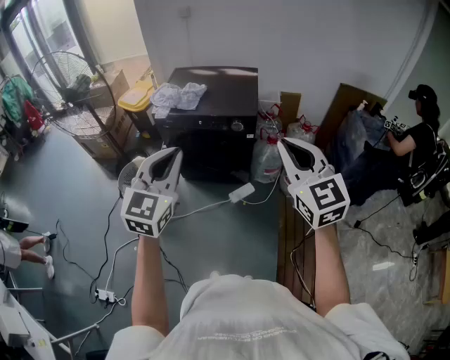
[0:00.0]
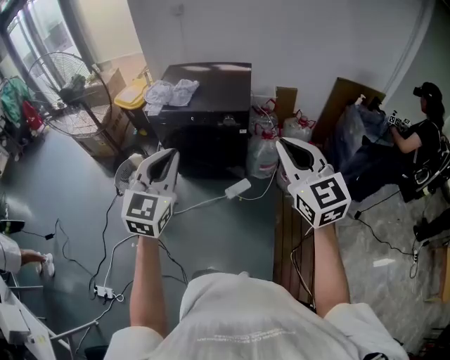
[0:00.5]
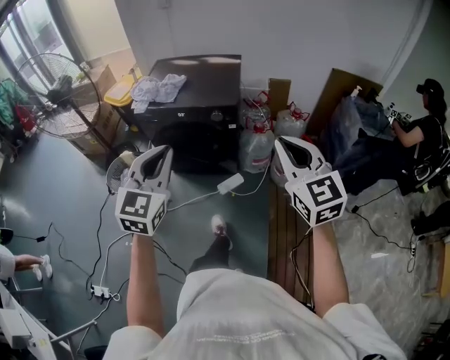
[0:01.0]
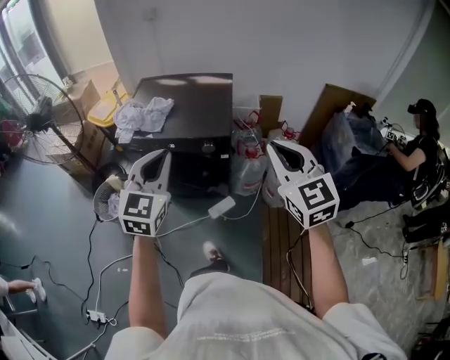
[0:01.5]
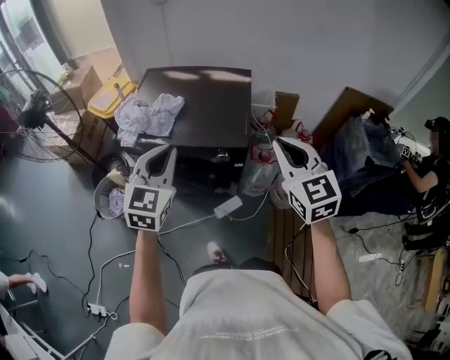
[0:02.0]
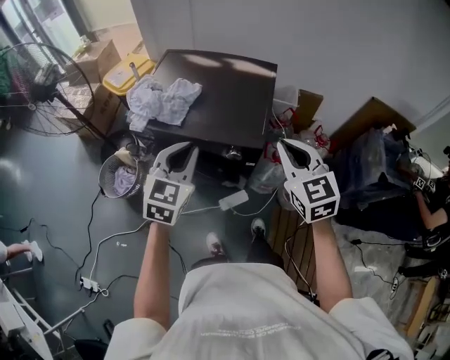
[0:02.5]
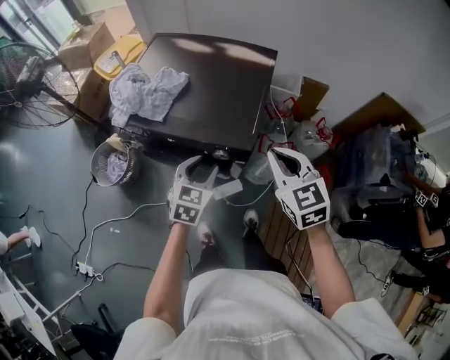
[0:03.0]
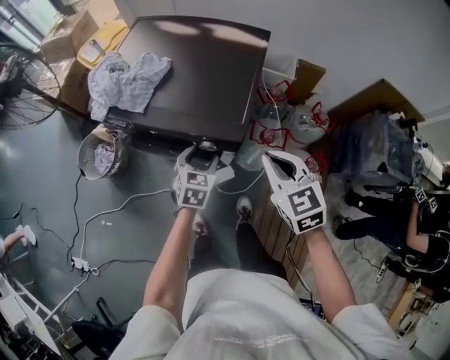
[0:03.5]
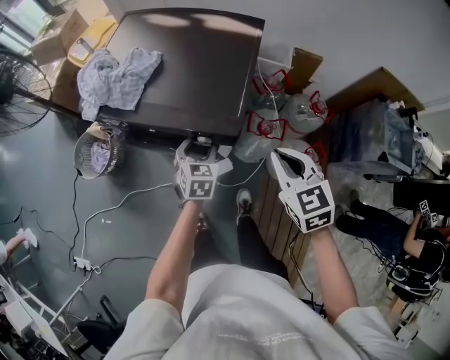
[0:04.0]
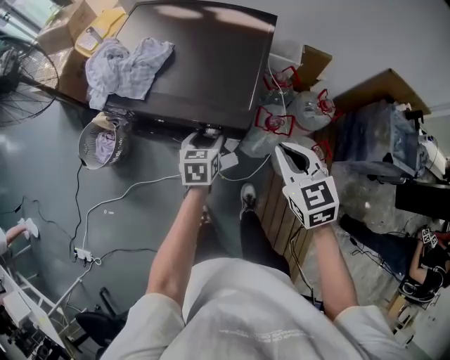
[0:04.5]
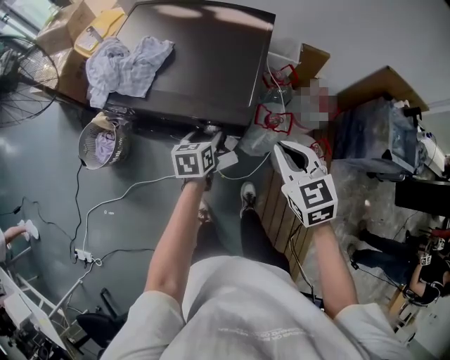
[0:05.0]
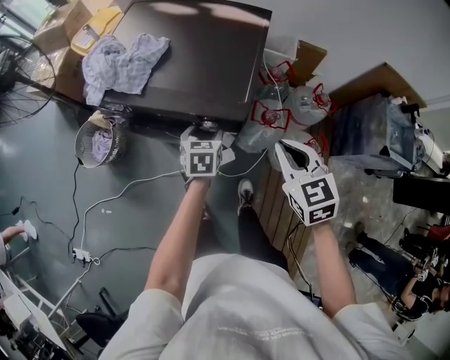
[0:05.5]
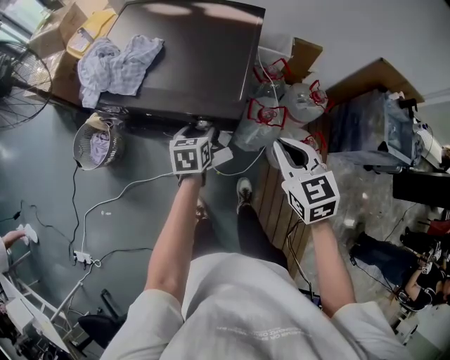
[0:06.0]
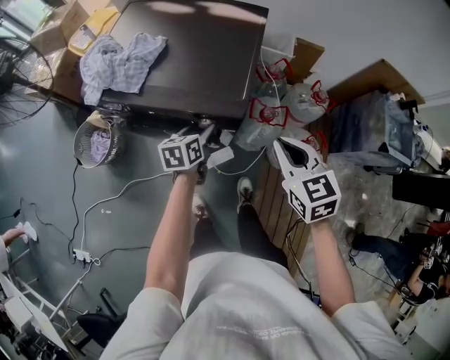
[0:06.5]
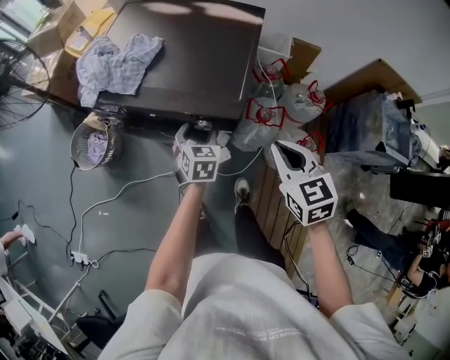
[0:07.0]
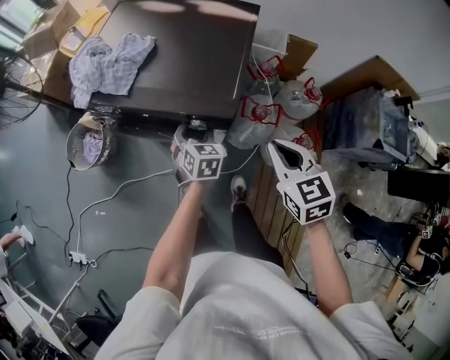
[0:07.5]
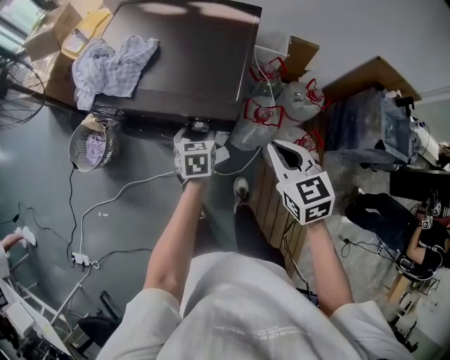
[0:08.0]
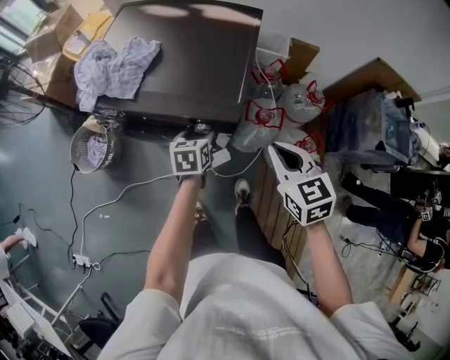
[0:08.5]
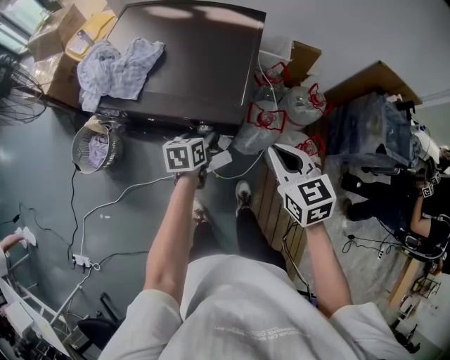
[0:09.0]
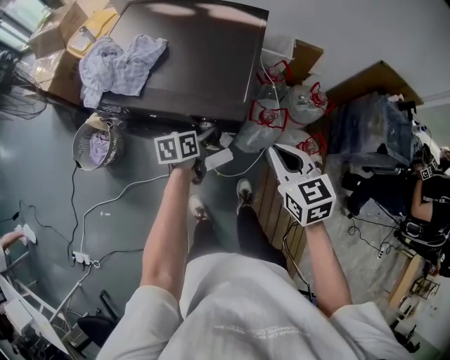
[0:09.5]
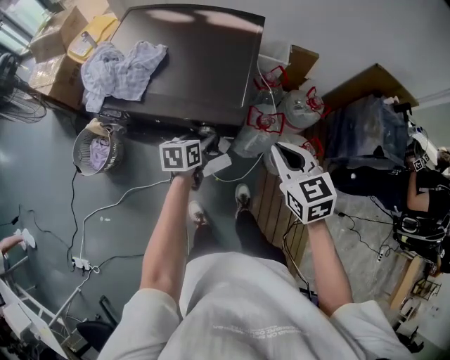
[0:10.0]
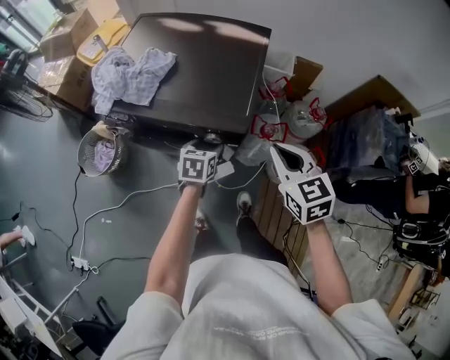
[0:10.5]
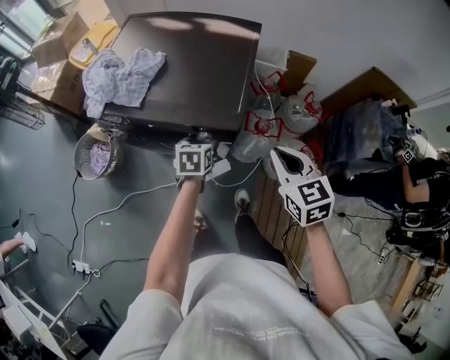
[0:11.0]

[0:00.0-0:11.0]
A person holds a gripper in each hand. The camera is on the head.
0:00.0 to 0:02.0: Both grippers travel together forward, roughly 30 cm.
0:02.0 to 0:03.5: The left gripper heads downward and to the right, covering approximately 35 cm, turns by approximately 30 degrees, and opens; the right gripper shifts approximately 20 cm downward and forward, and changes its angle by some 20 degrees.
0:07.5 to 0:09.0: The left gripper swivels roughly 40 degrees.
0:09.0 to 0:11.0: The grippers make only small movements.

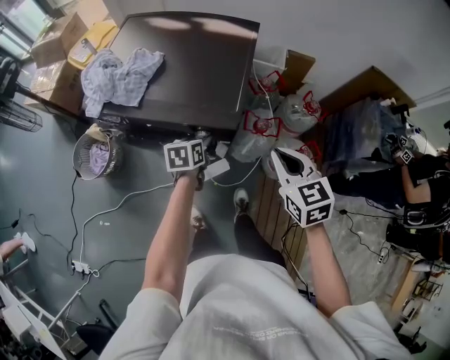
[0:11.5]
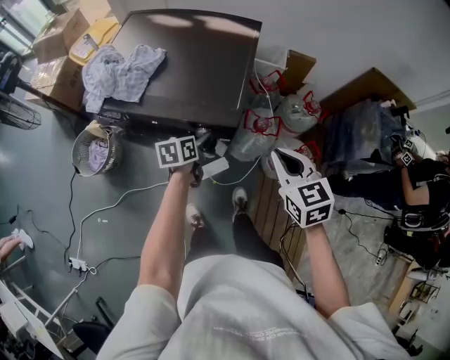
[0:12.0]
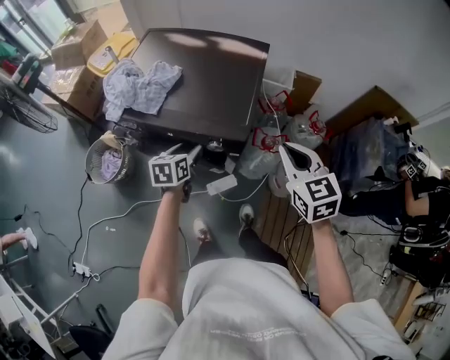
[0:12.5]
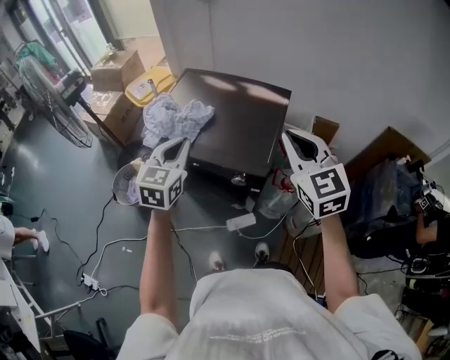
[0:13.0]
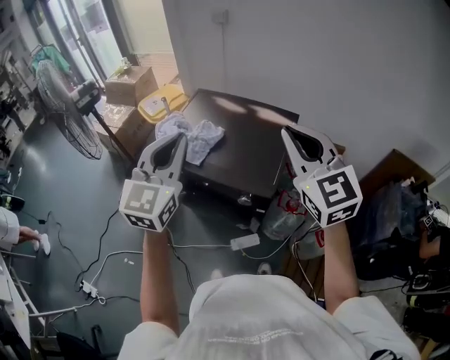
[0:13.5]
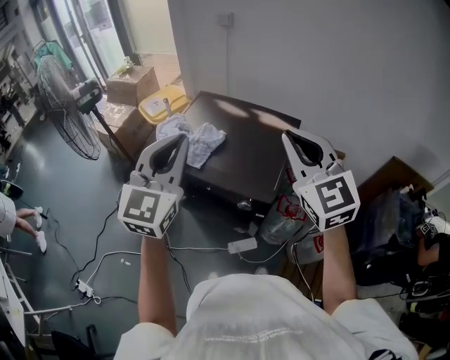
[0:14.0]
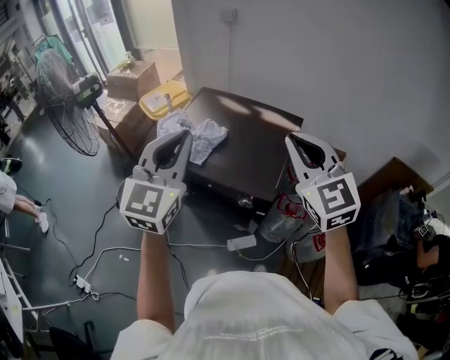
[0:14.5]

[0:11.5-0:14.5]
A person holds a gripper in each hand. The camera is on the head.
0:11.5 to 0:13.0: The right gripper shifts approximately 20 cm upward and to the left, and swivels roughly 30 degrees. Meanwhile the left gripper is displaced upward and to the left by approximately 35 cm, changes its angle by some 50 degrees, and closes.
0:13.0 to 0:14.5: The left gripper goes about 15 cm upward, and rotates about 20 degrees. The right gripper is displaced upward by approximately 5 cm.

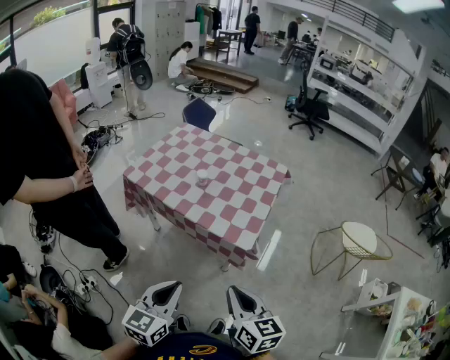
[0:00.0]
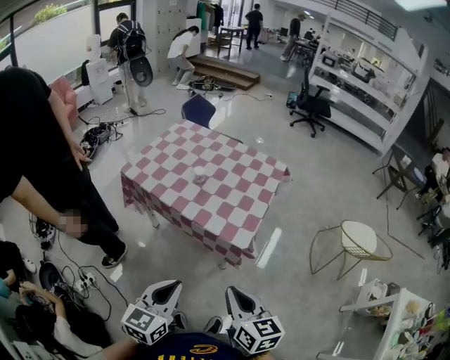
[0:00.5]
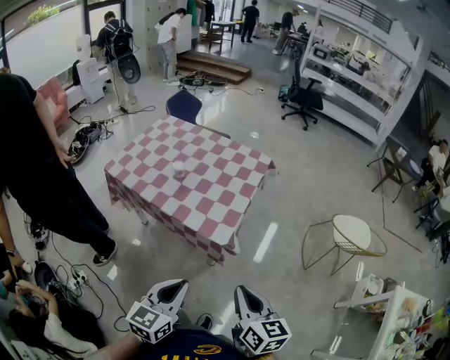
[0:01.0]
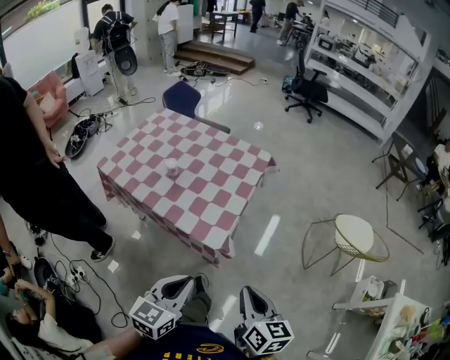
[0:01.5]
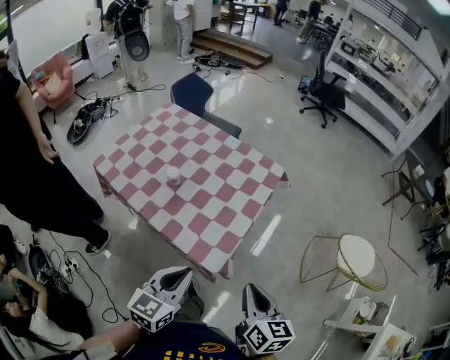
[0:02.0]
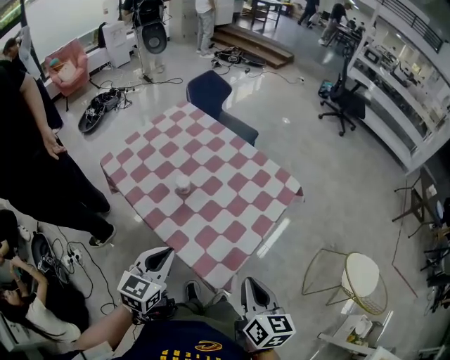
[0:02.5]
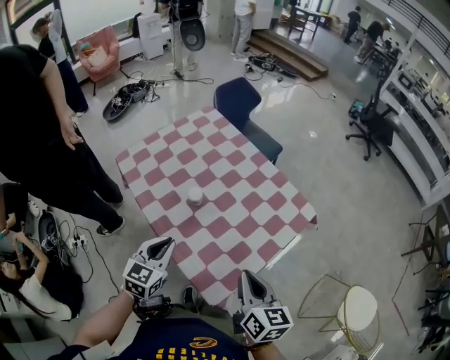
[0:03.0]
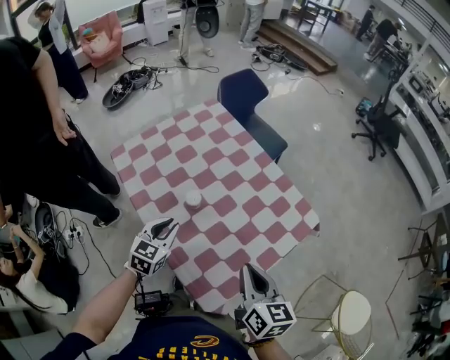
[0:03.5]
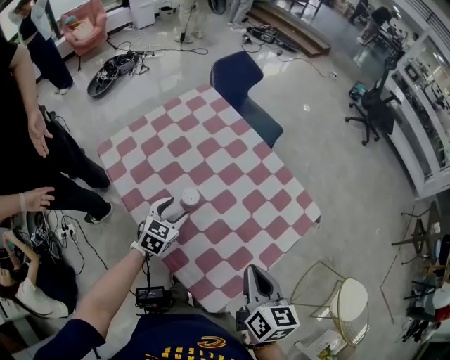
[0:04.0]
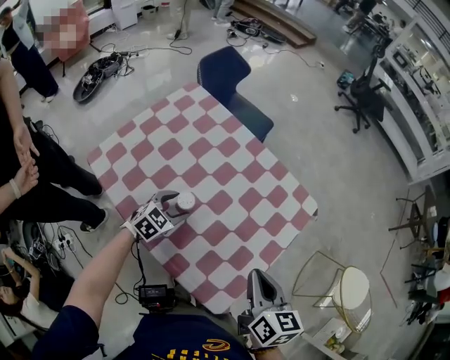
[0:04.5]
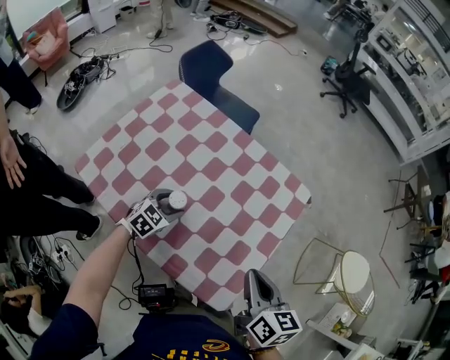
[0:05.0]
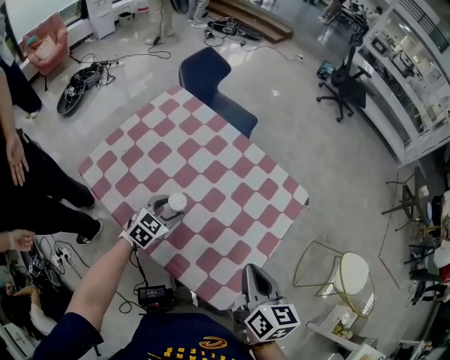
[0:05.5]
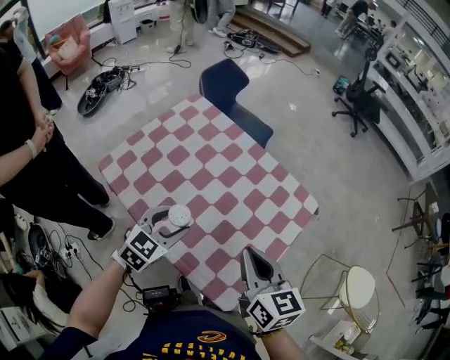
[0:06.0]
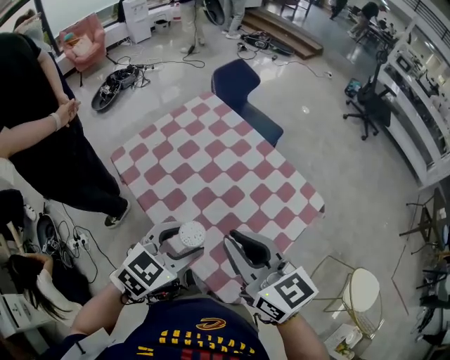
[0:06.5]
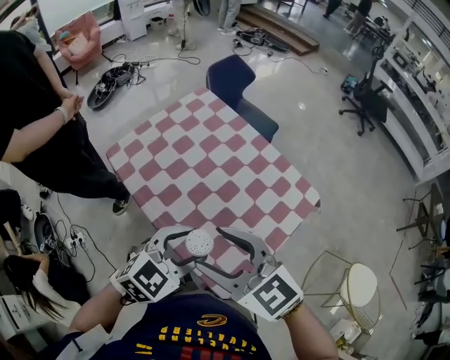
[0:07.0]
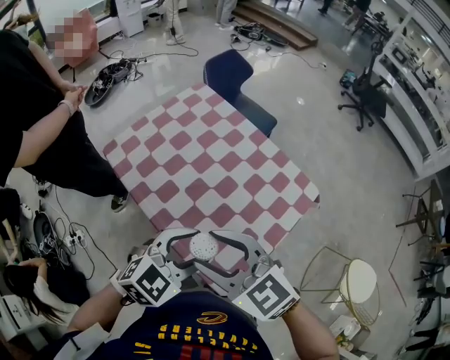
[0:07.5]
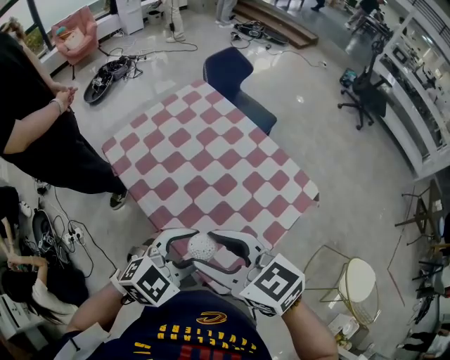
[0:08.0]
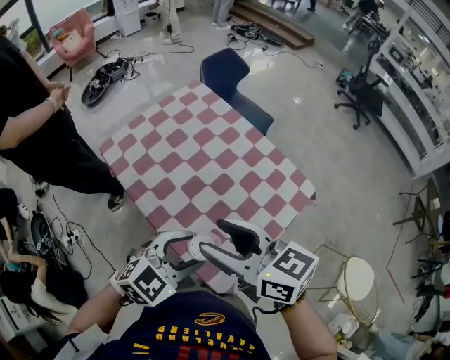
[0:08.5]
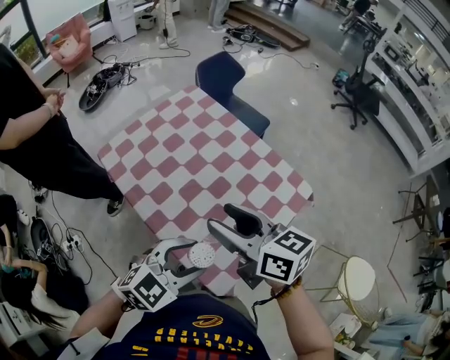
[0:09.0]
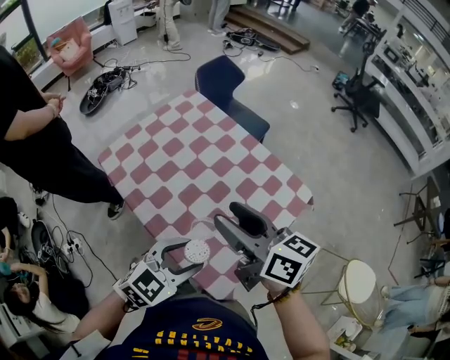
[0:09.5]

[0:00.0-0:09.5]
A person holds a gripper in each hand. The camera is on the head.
0:00.0 to 0:02.0: The grippers both shift forward and to the right by some 25 cm.
0:02.0 to 0:04.0: The right gripper heads forward, covering roughly 30 cm. Meanwhile the left gripper goes approximately 40 cm forward and downward, turns by approximately 30 degrees, and opens up.
0:04.0 to 0:05.5: The left gripper turns by about 20 degrees.
0:05.5 to 0:07.5: The left gripper heads upward and backward, covering approximately 30 cm; the right gripper moves to the left and upward, approximately 20 cm, swivels about 70 degrees, and opens.
0:07.5 to 0:09.5: The right gripper heads forward and to the right, covering approximately 10 cm, and rolls clockwise, seen from behind, by roughly 40 degrees.

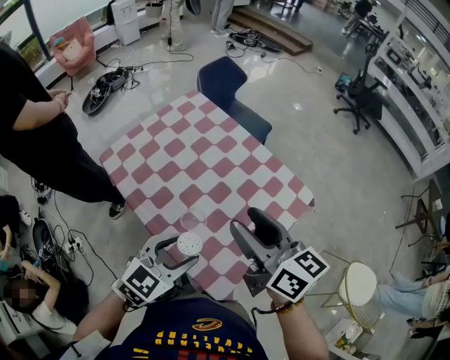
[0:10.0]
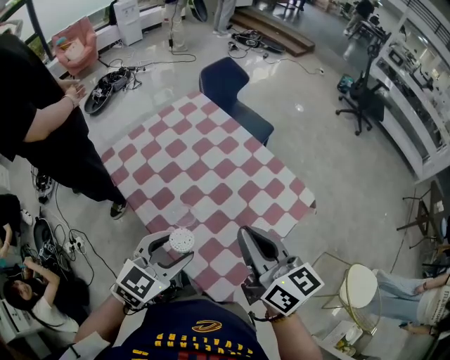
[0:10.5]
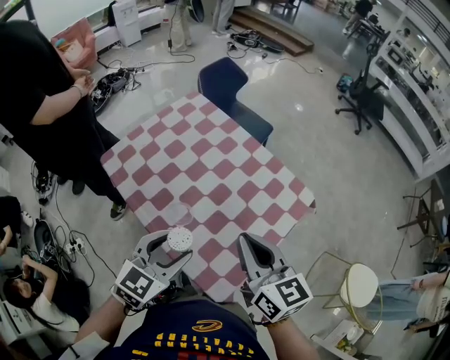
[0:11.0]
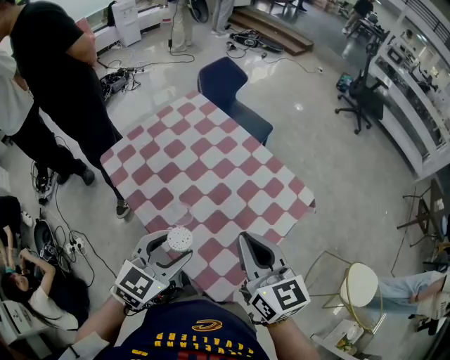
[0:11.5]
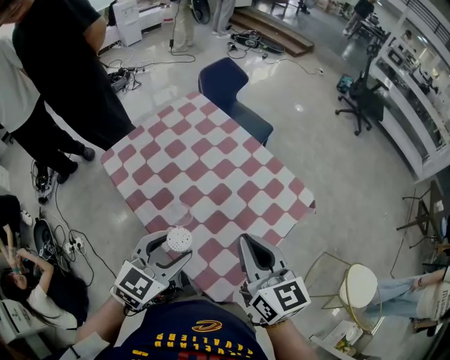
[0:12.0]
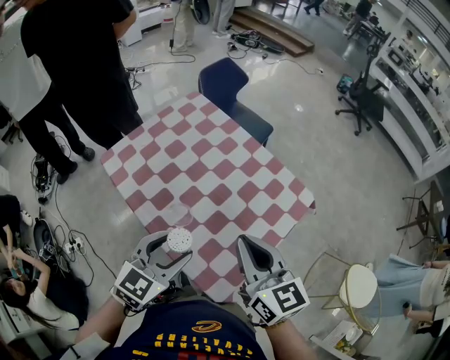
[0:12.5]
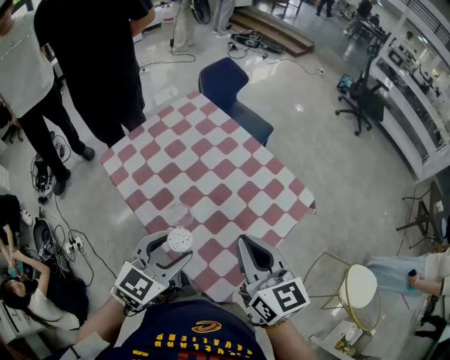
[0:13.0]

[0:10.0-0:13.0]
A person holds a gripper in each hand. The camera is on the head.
0:10.0 to 0:11.5: The right gripper closes.
0:11.5 to 0:13.0: Both grippers stay put.
